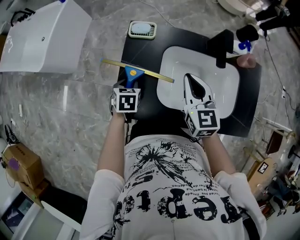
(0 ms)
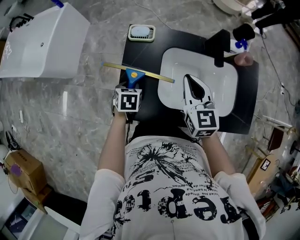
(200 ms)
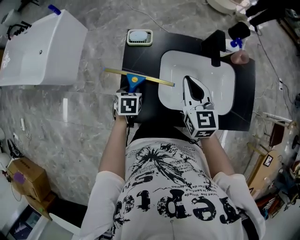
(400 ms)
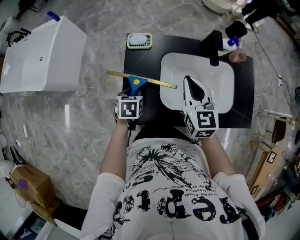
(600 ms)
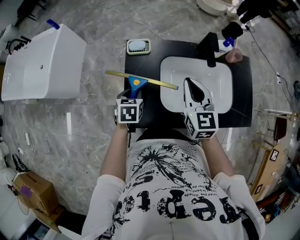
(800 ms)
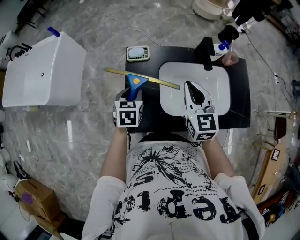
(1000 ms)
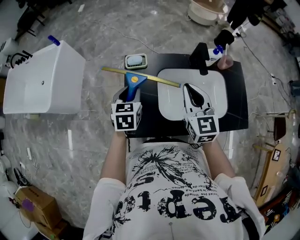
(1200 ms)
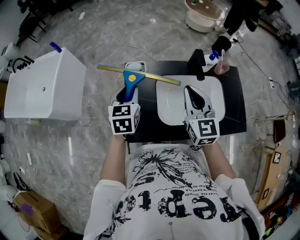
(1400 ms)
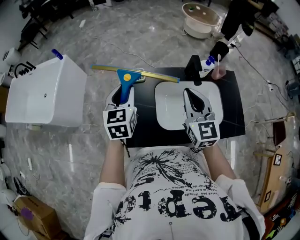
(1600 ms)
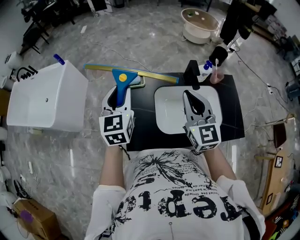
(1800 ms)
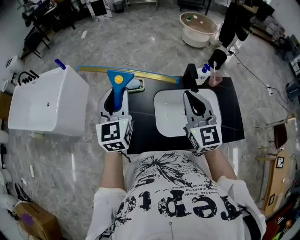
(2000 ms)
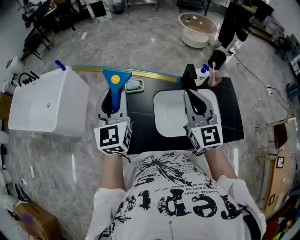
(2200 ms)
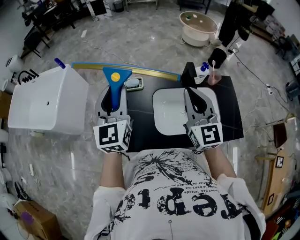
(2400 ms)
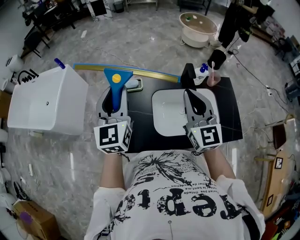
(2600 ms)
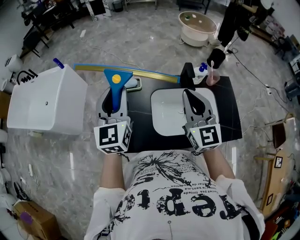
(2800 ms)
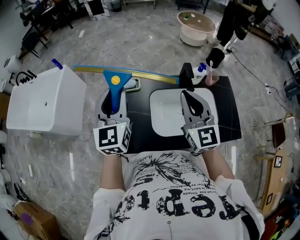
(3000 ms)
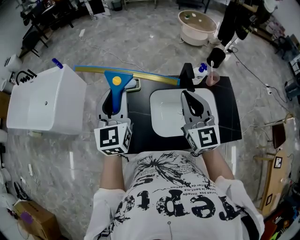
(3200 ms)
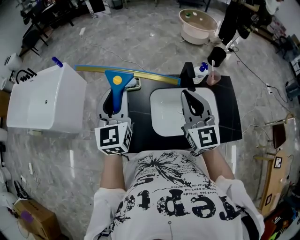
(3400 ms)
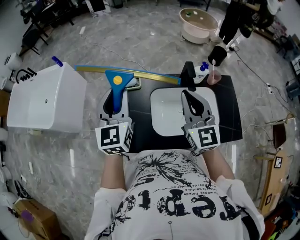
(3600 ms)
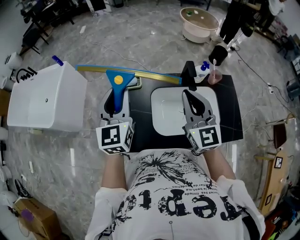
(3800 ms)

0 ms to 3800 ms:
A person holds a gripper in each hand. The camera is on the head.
0 ms to 1200 ms: The right gripper shifts roughly 10 cm upward. The left gripper shifts approximately 20 cm upward, and rotates some 30 degrees.
1200 ms to 2600 ms: The left gripper moves upward, some 25 cm, and tips its fingers upward by about 40 degrees; the right gripper shifts roughly 10 cm upward.
2600 ms to 3800 ms: The grippers move only a little.

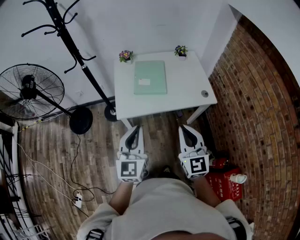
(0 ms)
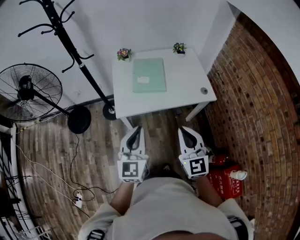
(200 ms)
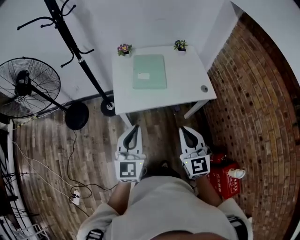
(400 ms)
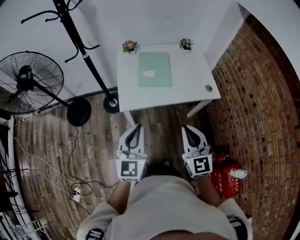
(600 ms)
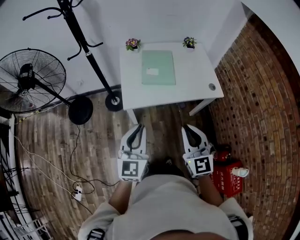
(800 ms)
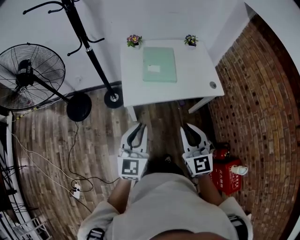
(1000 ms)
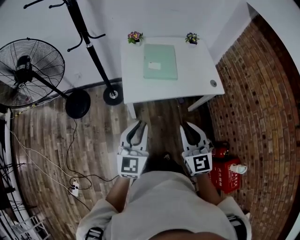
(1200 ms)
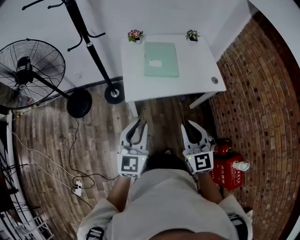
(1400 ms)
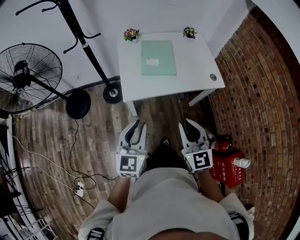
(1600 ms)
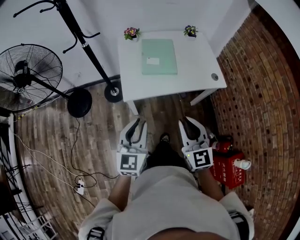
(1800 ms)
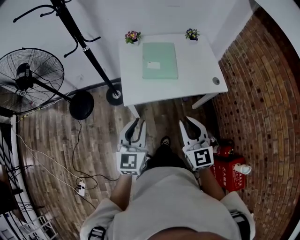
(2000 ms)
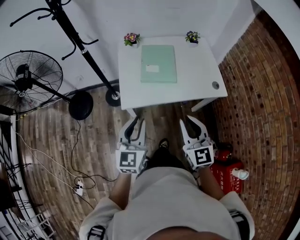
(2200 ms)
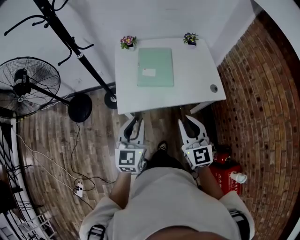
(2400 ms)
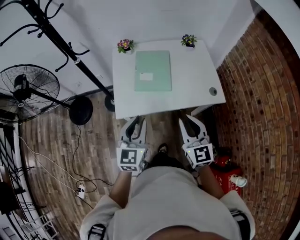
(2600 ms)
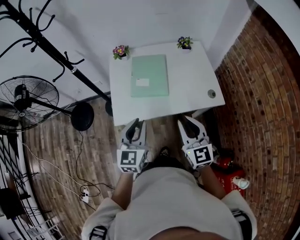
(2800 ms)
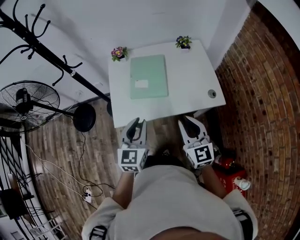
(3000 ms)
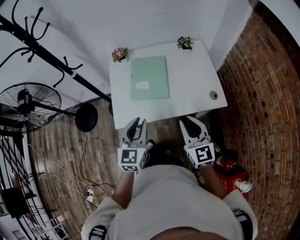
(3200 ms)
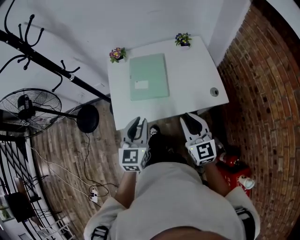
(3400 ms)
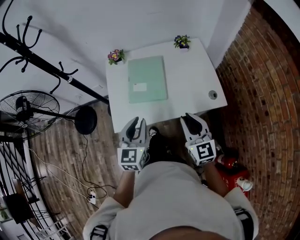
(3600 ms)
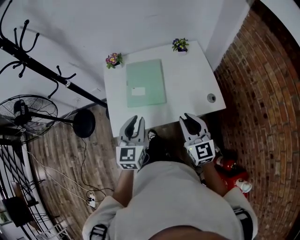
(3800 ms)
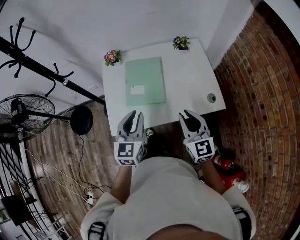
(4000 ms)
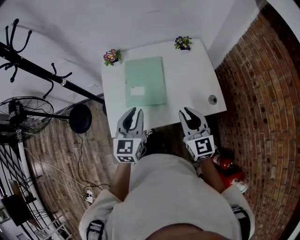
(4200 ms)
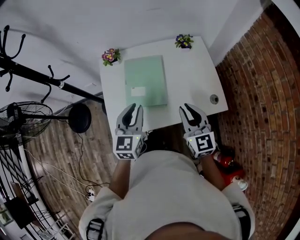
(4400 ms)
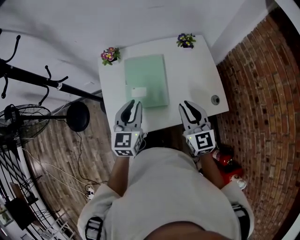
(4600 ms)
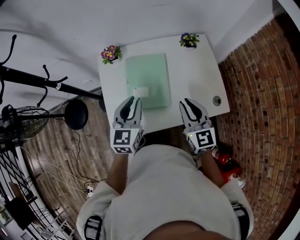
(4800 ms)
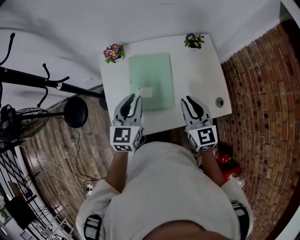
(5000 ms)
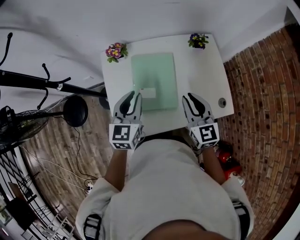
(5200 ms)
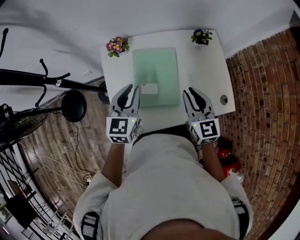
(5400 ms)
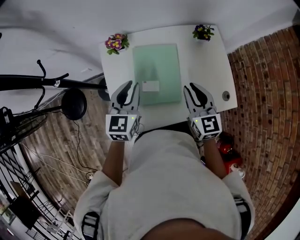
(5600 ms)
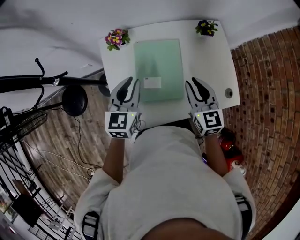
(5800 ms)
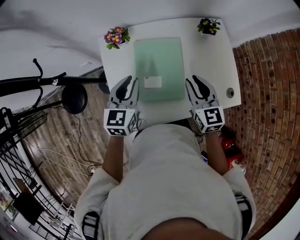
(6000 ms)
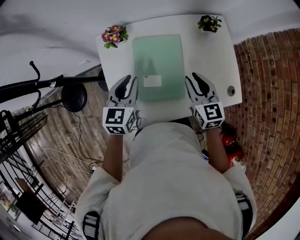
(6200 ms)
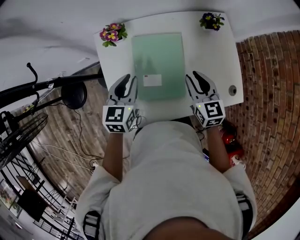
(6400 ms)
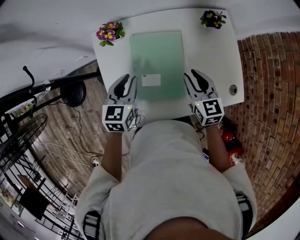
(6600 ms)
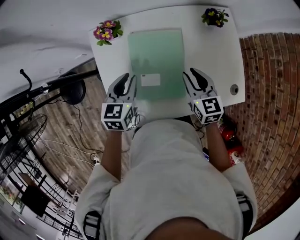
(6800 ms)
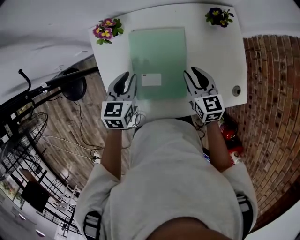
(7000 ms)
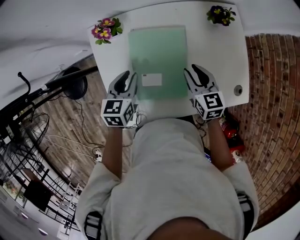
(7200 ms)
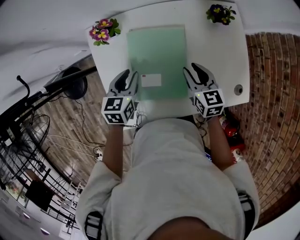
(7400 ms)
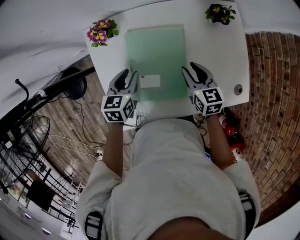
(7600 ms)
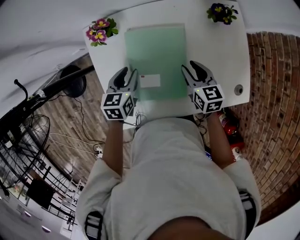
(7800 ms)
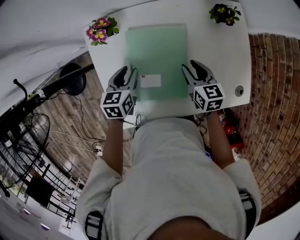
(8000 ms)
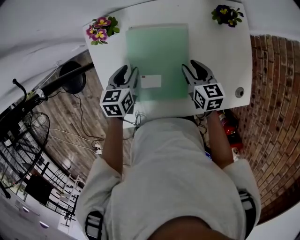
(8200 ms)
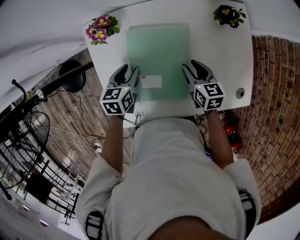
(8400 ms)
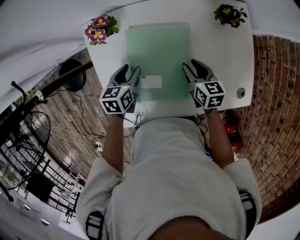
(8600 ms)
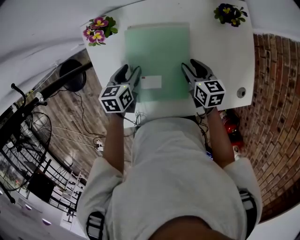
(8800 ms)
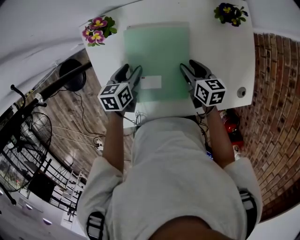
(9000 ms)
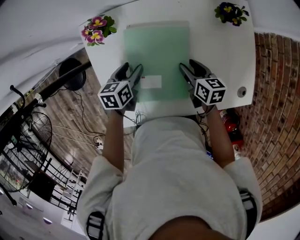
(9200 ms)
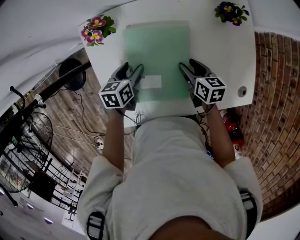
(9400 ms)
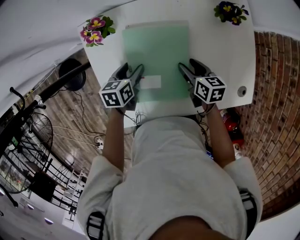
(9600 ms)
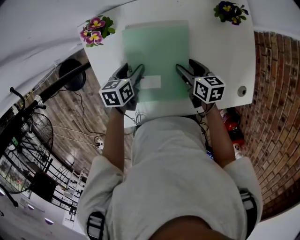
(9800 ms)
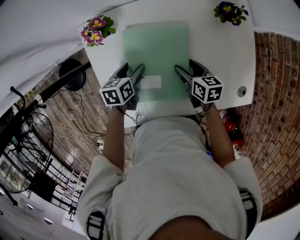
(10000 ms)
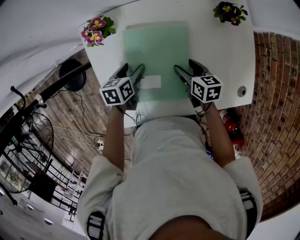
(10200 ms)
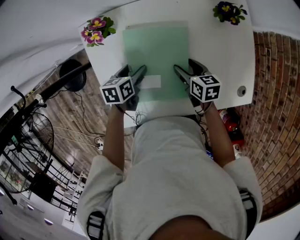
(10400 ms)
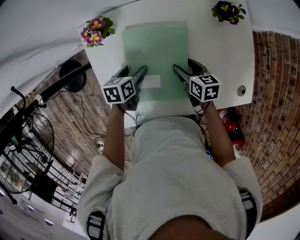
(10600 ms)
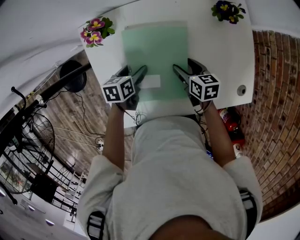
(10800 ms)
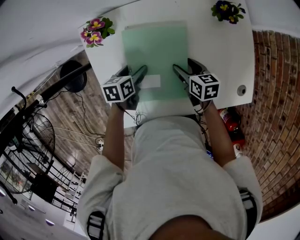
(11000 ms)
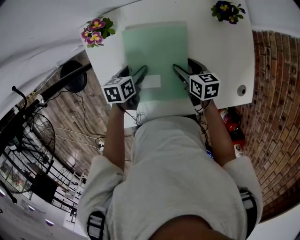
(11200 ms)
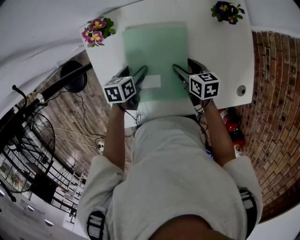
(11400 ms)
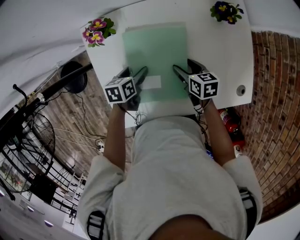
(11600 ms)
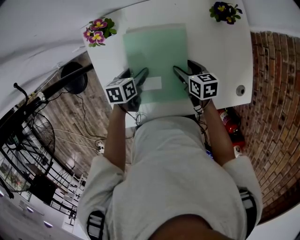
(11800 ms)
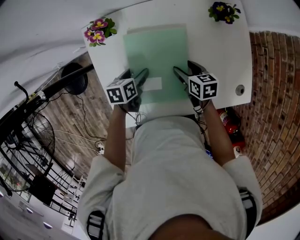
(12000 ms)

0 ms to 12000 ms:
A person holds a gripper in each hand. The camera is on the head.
0 ms to 1600 ms: The right gripper goes about 10 cm to the left. The left gripper shifts approximately 10 cm to the left and downward.
1600 ms to 3000 ms: The grippers both shift forward and to the right by approximately 20 cm.
3000 ms to 4400 ms: The grippers both shift forward by about 15 cm.
4400 ms to 6000 ms: Both grippers travel together forward and to the left, some 20 cm.
6000 ms to 7600 ms: Both grippers move downward and forward, some 15 cm. The right gripper turns by roughly 20 degrees, while the left gripper rotates approximately 20 degrees.
7600 ms to 9000 ms: The grippers both shift downward by approximately 5 cm.
9000 ms to 10400 ms: The right gripper opens up.
10400 ms to 12000 ms: The grippers make only small movements.

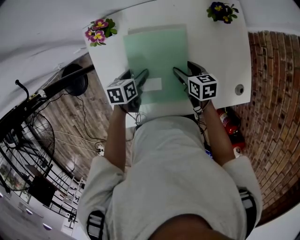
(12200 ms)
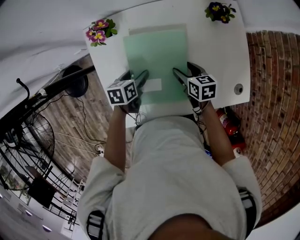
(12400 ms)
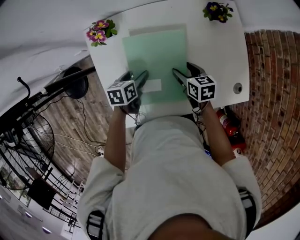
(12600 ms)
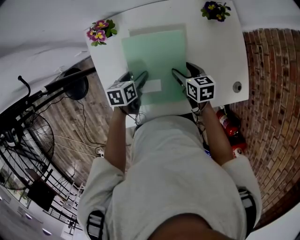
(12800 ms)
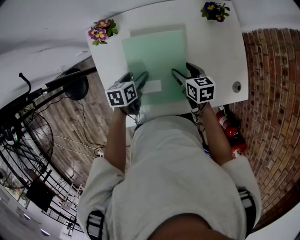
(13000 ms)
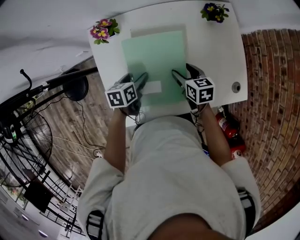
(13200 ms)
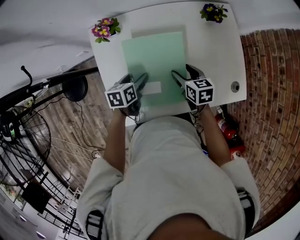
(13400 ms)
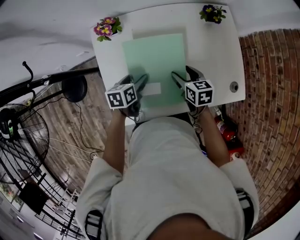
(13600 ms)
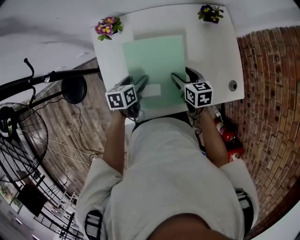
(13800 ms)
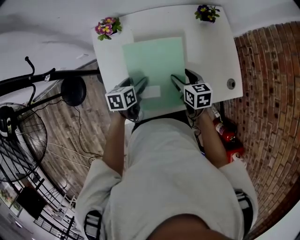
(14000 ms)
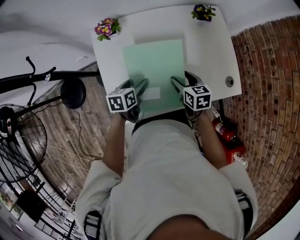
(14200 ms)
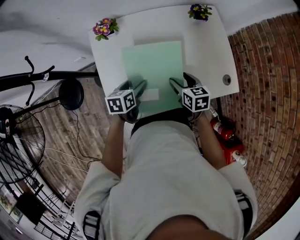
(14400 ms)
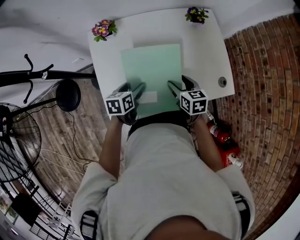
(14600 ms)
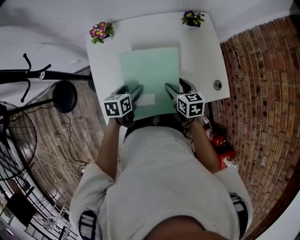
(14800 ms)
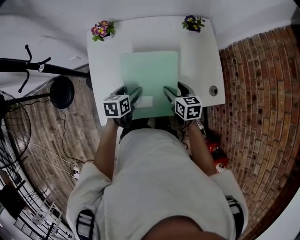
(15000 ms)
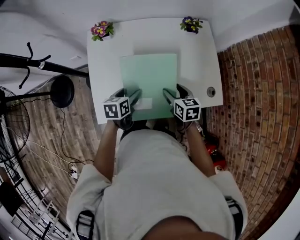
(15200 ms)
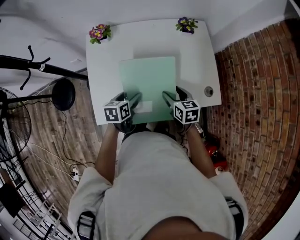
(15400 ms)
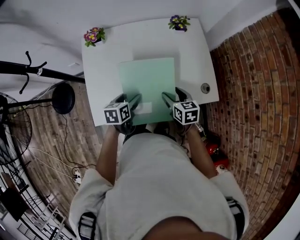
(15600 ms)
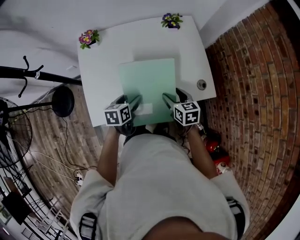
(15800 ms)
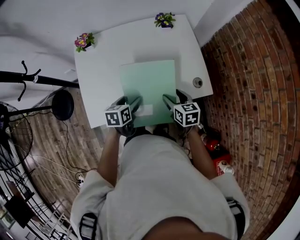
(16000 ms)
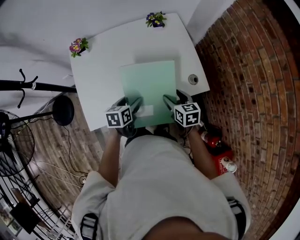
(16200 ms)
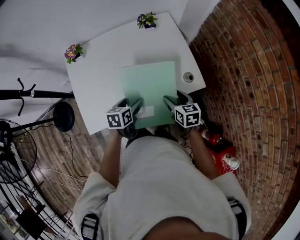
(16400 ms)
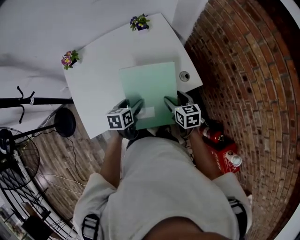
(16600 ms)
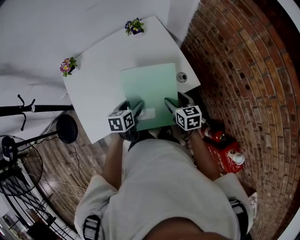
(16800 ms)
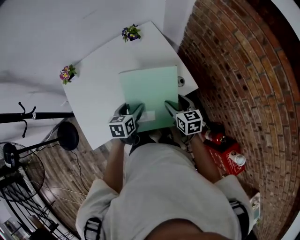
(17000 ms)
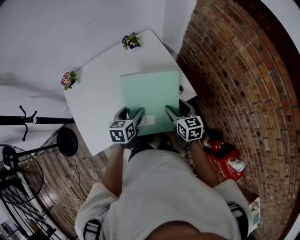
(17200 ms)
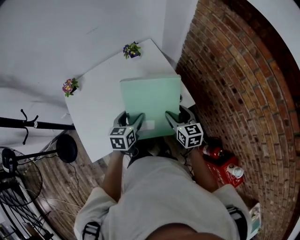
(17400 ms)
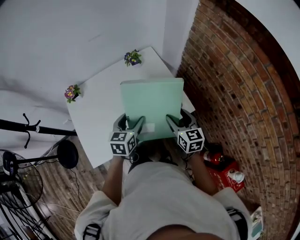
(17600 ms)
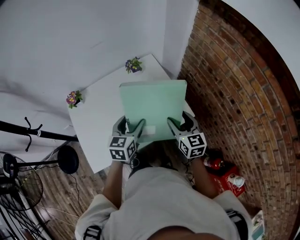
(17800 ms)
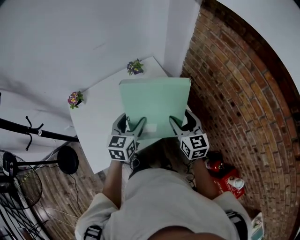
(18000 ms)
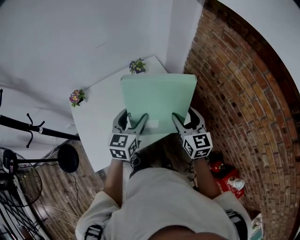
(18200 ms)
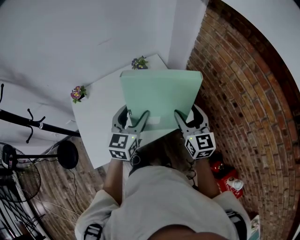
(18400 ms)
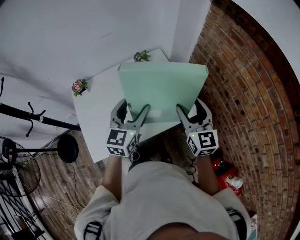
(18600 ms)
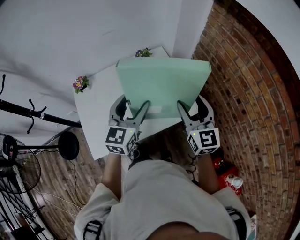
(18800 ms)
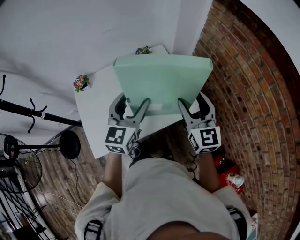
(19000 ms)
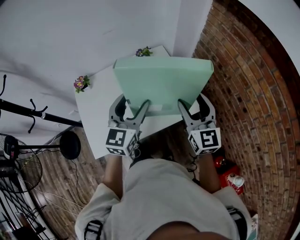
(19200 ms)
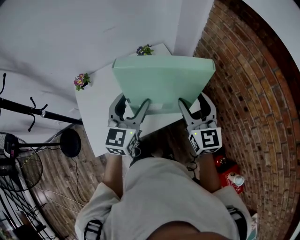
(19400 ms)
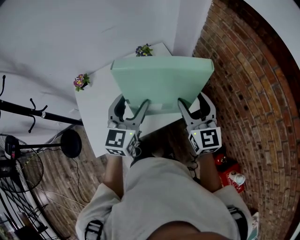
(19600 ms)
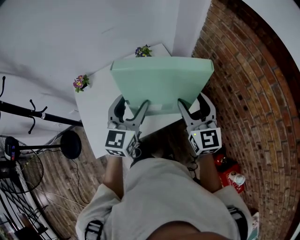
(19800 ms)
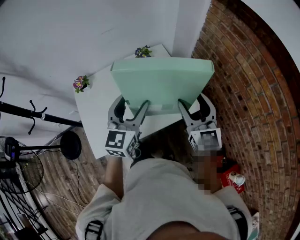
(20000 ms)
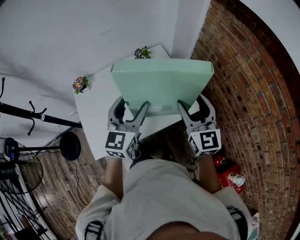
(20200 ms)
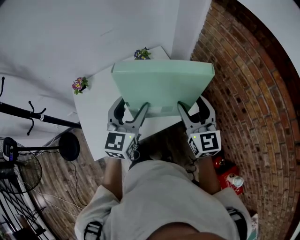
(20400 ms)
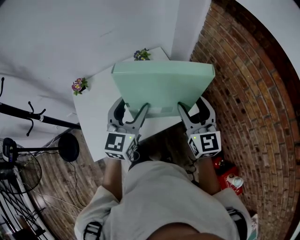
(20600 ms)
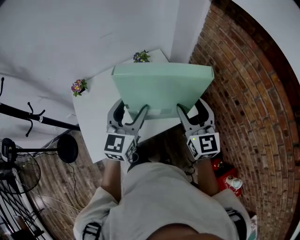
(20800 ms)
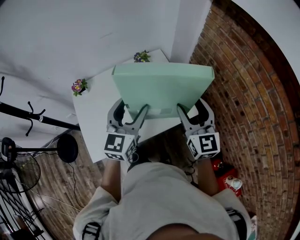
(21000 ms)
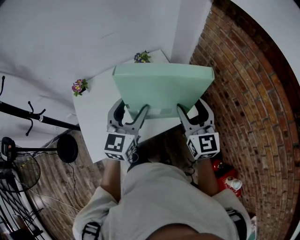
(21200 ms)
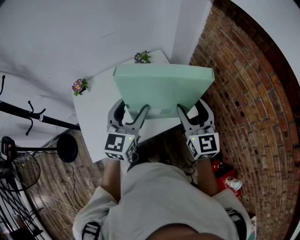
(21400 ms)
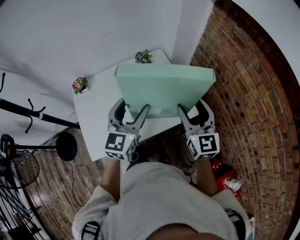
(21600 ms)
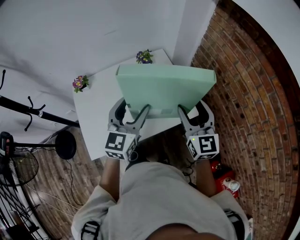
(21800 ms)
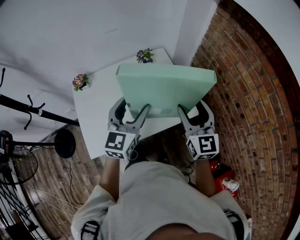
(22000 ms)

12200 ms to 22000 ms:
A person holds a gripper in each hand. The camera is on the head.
12200 ms to 13600 ms: The right gripper is displaced upward by some 5 cm. The left gripper is displaced backward by some 5 cm.
13600 ms to 15000 ms: Both grippers move backward and to the right, roughly 10 cm.
15000 ms to 16400 ms: The left gripper is displaced to the right by approximately 15 cm, while the right gripper shifts about 20 cm to the right and backward.
16400 ms to 17800 ms: The grippers both shift upward by some 15 cm. The right gripper turns by some 30 degrees. The left gripper rotates approximately 30 degrees.
17800 ms to 19200 ms: The two grippers go approximately 10 cm upward. The left gripper changes its angle by roughly 20 degrees.
19200 ms to 22000 ms: The two grippers keep their place.
